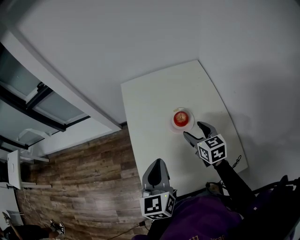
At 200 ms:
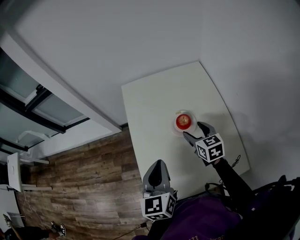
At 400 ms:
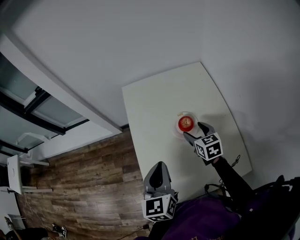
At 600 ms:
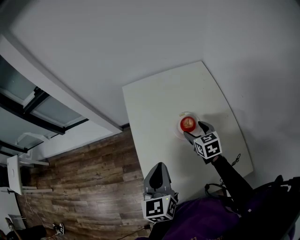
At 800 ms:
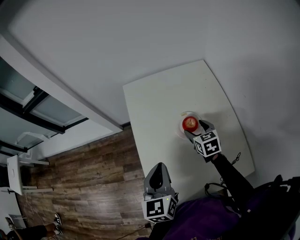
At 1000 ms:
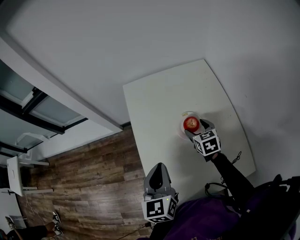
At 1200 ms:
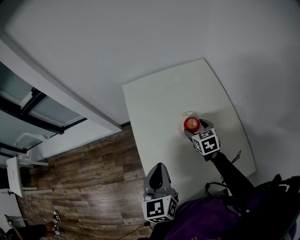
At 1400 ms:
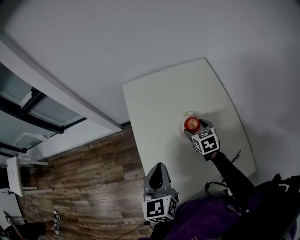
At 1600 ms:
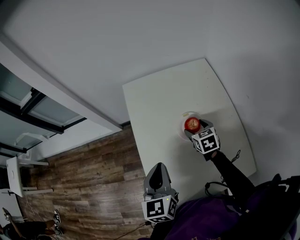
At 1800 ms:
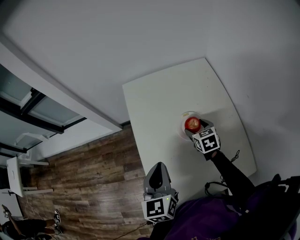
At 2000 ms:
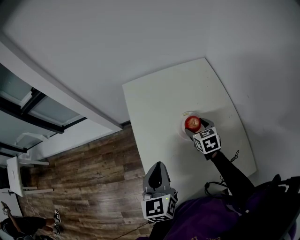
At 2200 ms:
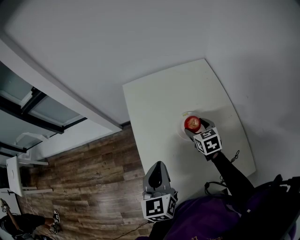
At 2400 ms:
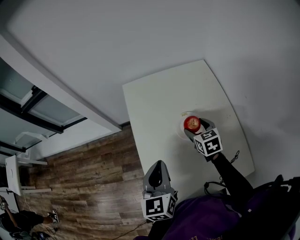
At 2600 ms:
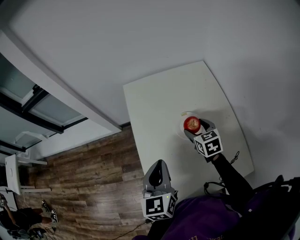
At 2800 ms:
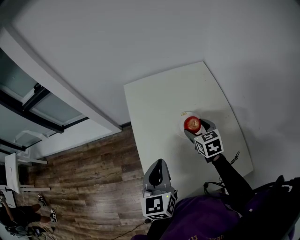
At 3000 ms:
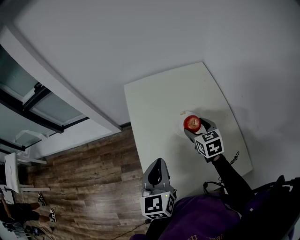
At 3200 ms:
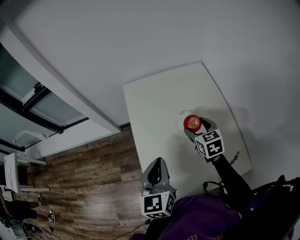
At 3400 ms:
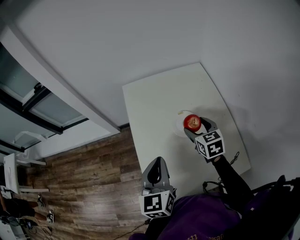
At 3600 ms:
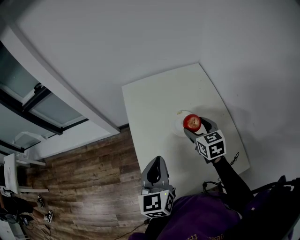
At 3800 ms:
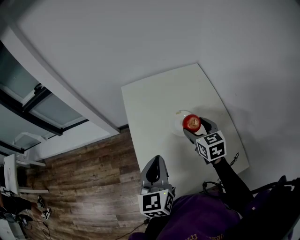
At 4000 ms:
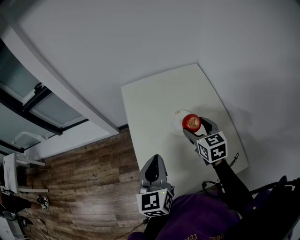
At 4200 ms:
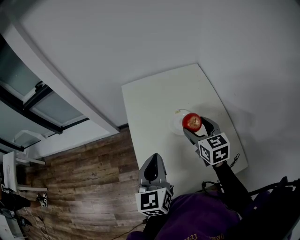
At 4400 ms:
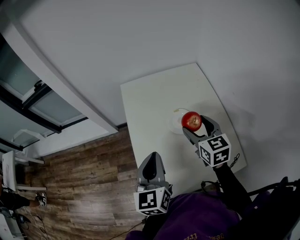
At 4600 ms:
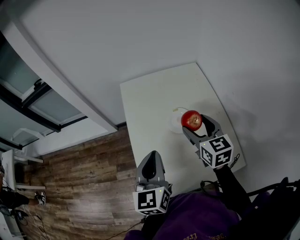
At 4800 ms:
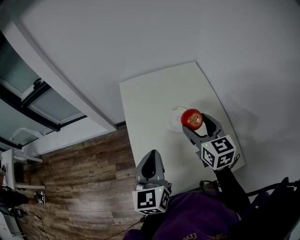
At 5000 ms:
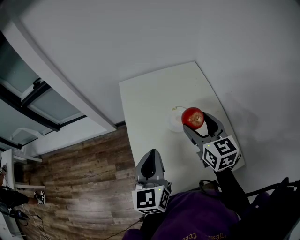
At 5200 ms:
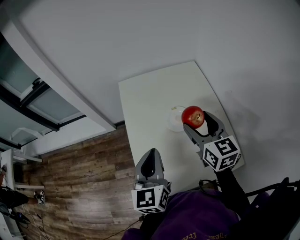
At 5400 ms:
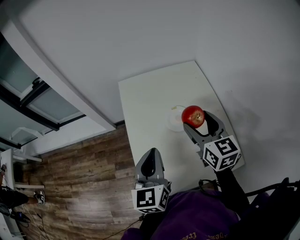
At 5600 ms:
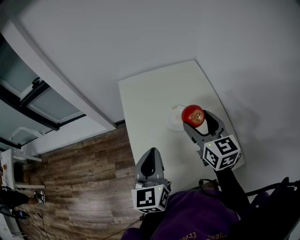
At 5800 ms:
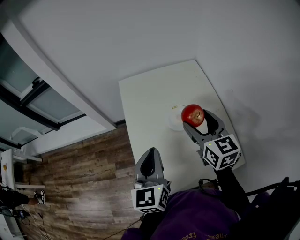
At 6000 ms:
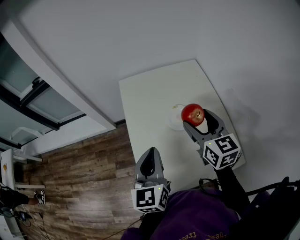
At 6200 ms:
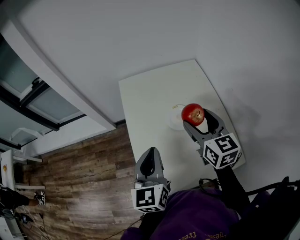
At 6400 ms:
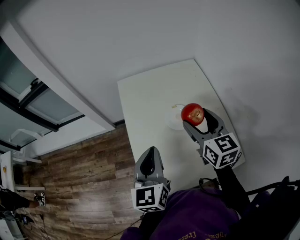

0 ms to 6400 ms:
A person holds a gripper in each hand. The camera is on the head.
0 ms to 1600 ms: The right gripper heads downward and forward, covering approximately 10 cm; the left gripper goes approximately 5 cm forward.
1600 ms to 3200 ms: The right gripper moves upward, about 10 cm.
3200 ms to 4800 ms: The right gripper goes about 15 cm upward and backward.
4800 ms to 6400 ms: There are only small adjustments of the grippers.

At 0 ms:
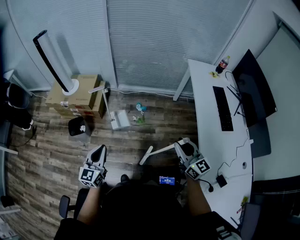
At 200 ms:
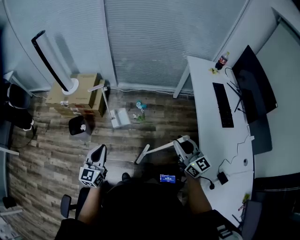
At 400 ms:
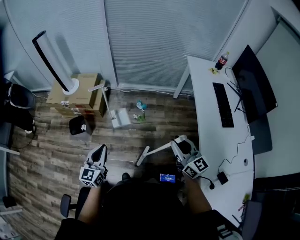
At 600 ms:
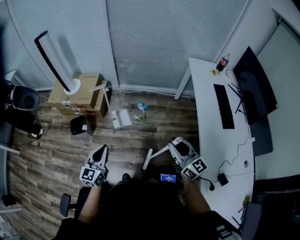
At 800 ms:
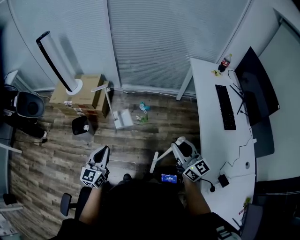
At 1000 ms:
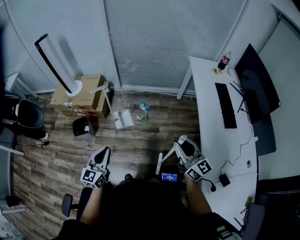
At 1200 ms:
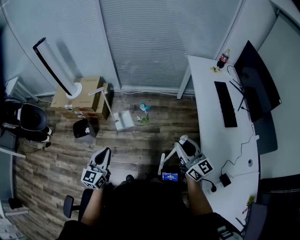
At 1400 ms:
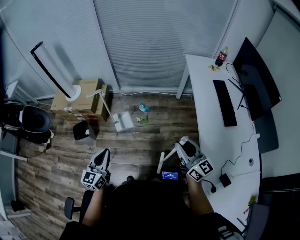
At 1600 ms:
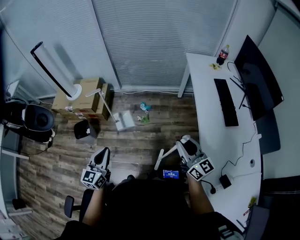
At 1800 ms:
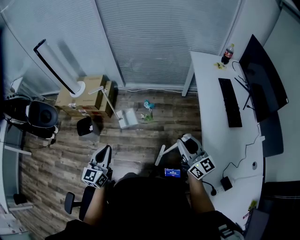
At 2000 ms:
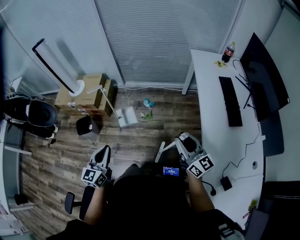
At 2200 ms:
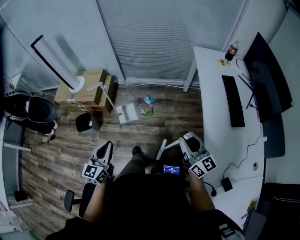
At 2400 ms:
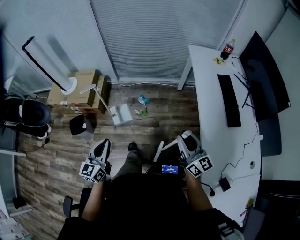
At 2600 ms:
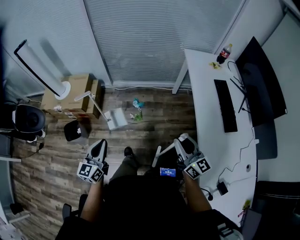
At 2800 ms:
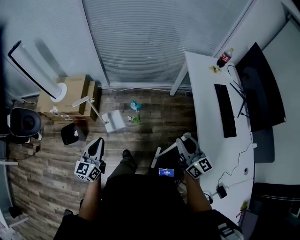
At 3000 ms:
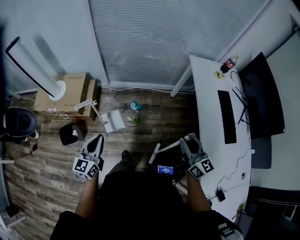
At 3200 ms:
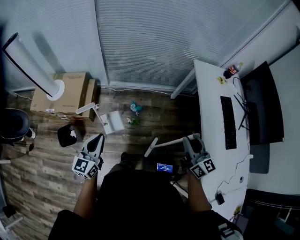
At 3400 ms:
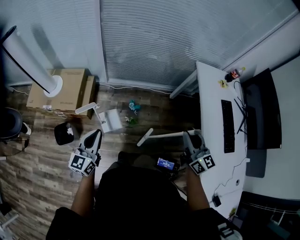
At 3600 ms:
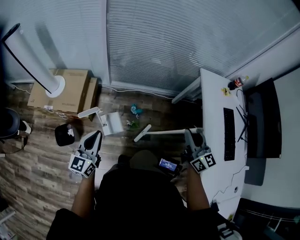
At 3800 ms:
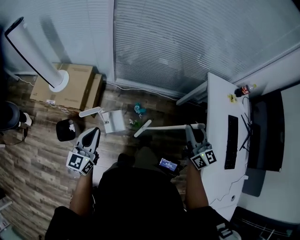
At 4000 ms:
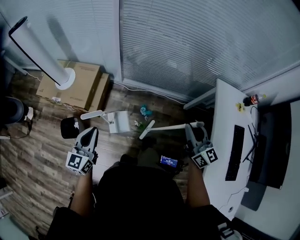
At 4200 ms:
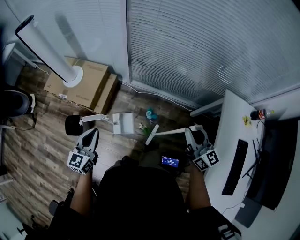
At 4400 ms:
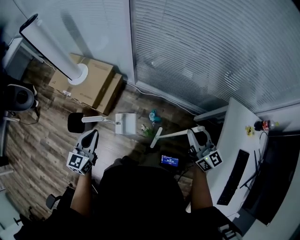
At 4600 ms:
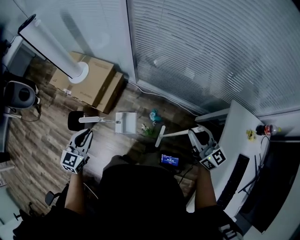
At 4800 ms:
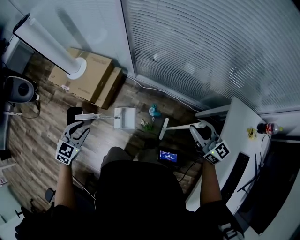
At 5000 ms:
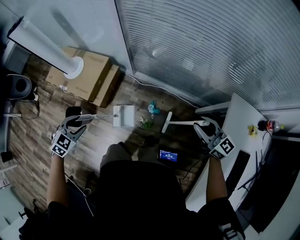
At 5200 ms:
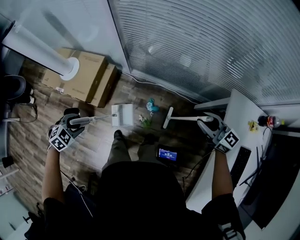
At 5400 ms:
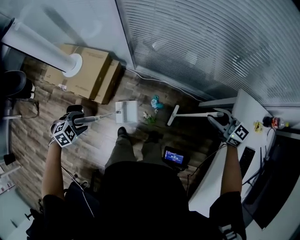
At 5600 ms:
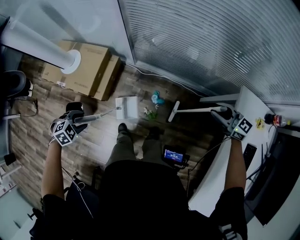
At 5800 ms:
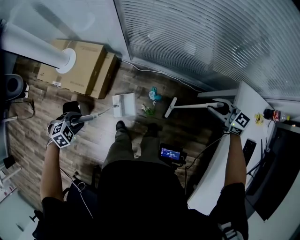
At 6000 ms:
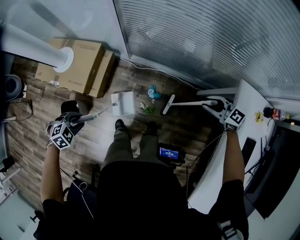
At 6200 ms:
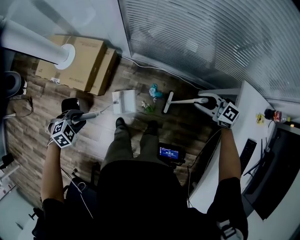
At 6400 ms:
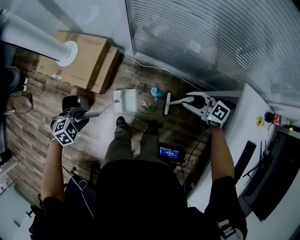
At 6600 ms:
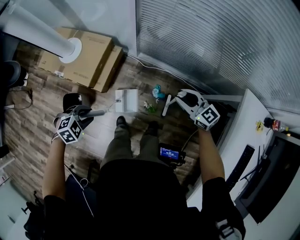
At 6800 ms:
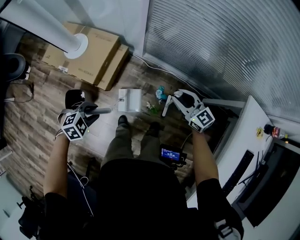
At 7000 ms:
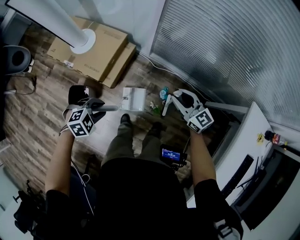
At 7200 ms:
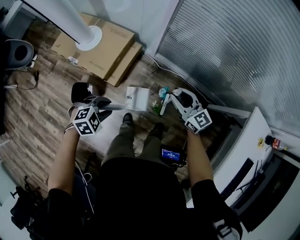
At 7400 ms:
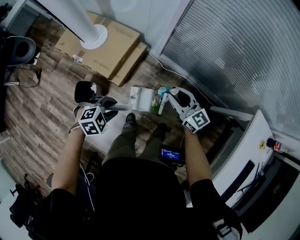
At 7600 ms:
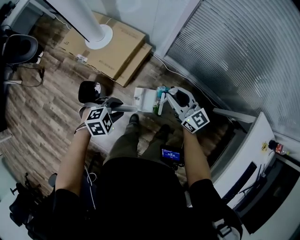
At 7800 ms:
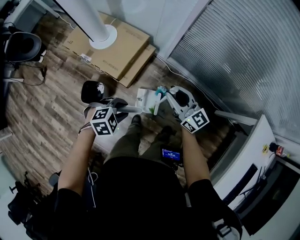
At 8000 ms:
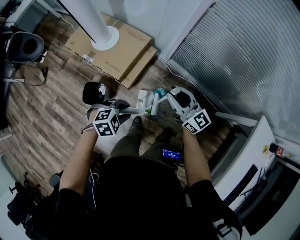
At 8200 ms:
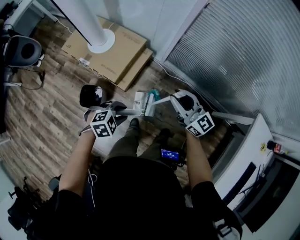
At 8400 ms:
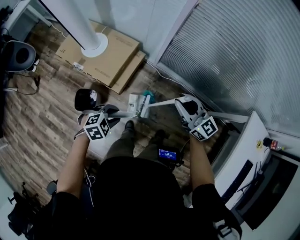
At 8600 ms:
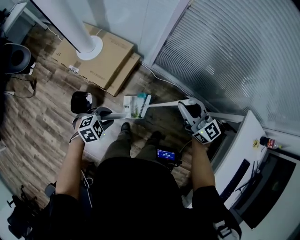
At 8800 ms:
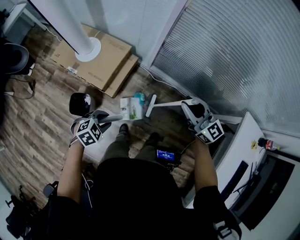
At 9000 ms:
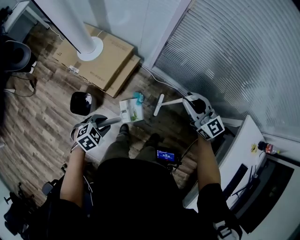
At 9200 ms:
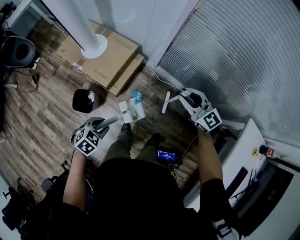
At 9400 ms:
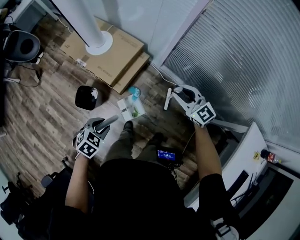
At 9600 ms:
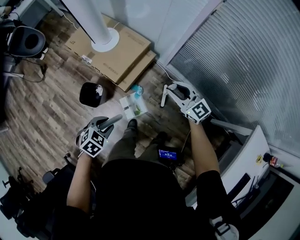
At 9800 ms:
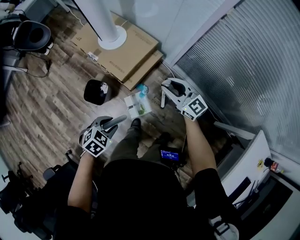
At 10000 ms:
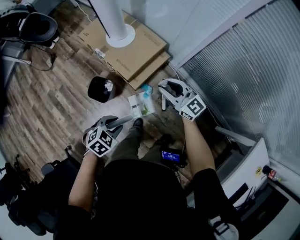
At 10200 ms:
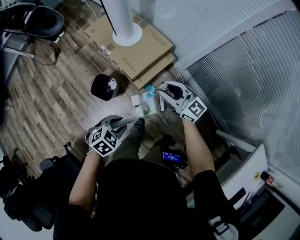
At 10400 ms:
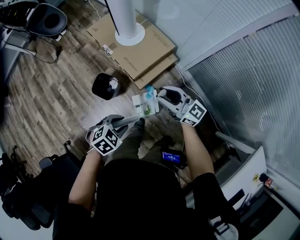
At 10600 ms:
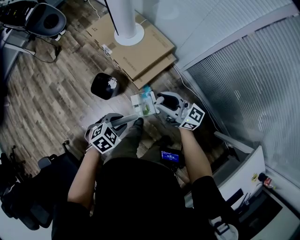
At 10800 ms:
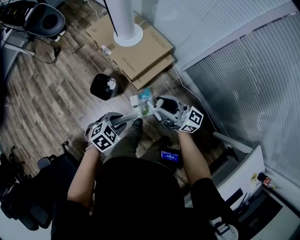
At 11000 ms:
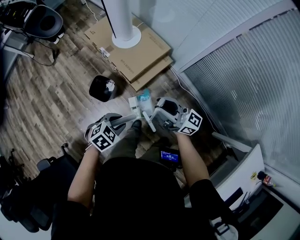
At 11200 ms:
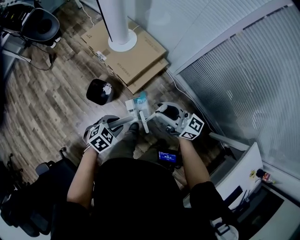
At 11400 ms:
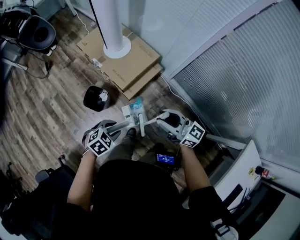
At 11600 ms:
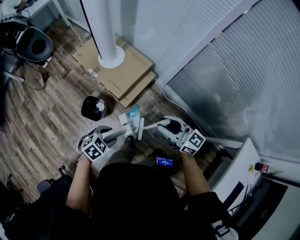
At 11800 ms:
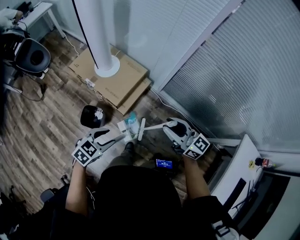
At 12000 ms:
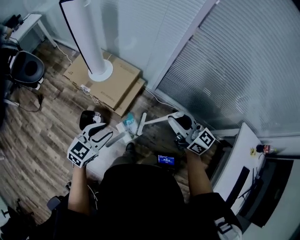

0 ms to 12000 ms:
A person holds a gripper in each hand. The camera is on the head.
0 ms to 1600 ms: Both grippers move to the right, approximately 5 cm.
1600 ms to 3000 ms: Both grippers travel together forward, roughly 20 cm.
3000 ms to 4400 ms: The left gripper heads forward, covering about 20 cm, and rotates roughly 20 degrees; the right gripper is displaced forward by about 35 cm, and rotates some 30 degrees.
4400 ms to 6000 ms: The left gripper goes about 15 cm downward and to the left, points its fingers some 60 degrees further downward, and opens up. Meanwhile the right gripper travels downward, forward and to the right by approximately 20 cm, and turns by approximately 40 degrees.
6000 ms to 7600 ms: The right gripper changes place by about 40 cm, and swivels some 20 degrees.
7600 ms to 9000 ms: The right gripper moves to the right and upward, approximately 15 cm.
9000 ms to 10400 ms: The left gripper shifts by some 5 cm, and swivels some 20 degrees, while the right gripper changes place by about 30 cm, and rotates roughly 40 degrees.
10400 ms to 12000 ms: The grippers both shift upward by approximately 15 cm. The left gripper tips its fingers upward by approximately 40 degrees. The right gripper changes its angle by roughly 30 degrees.

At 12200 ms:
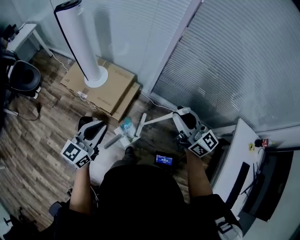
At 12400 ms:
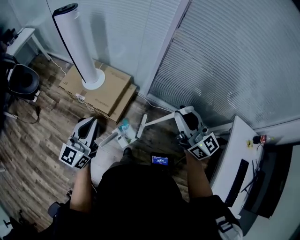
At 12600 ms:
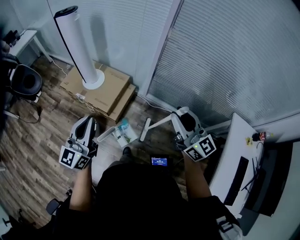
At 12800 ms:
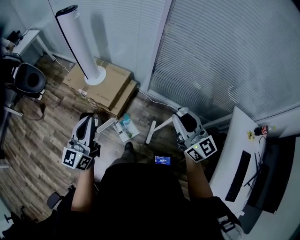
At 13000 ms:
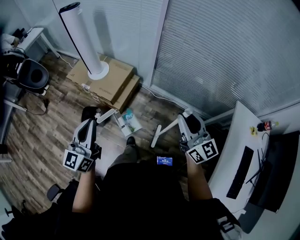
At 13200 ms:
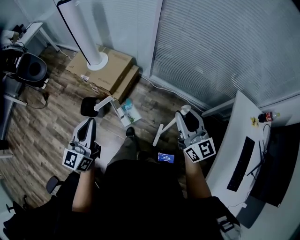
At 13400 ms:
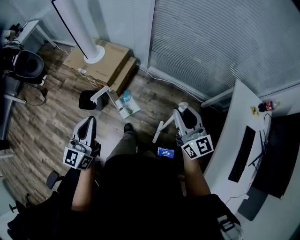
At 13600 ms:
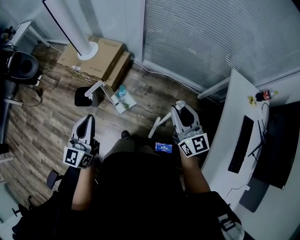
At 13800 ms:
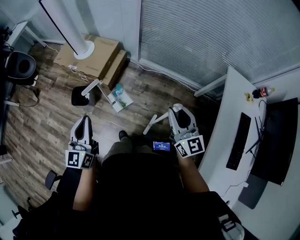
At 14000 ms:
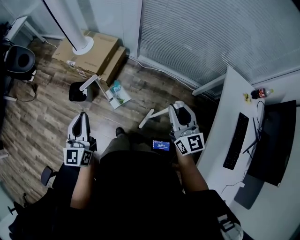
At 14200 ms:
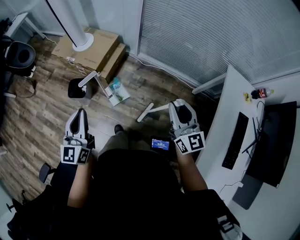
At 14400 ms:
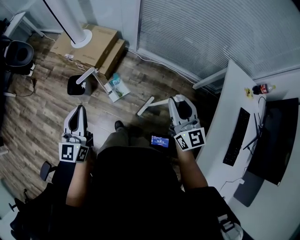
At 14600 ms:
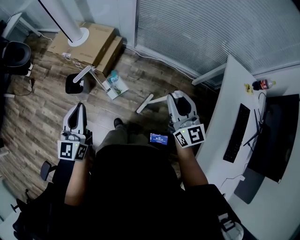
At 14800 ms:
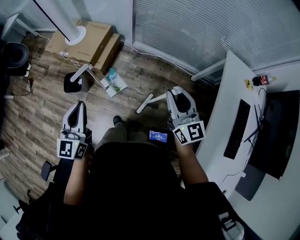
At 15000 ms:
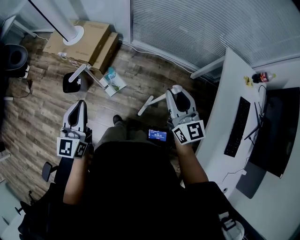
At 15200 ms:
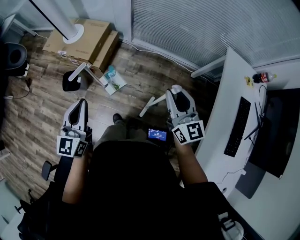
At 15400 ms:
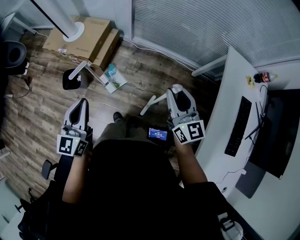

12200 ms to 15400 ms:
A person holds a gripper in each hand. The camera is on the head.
12200 ms to 13800 ms: The right gripper moves backward and to the right, some 30 cm, and swivels about 30 degrees; the left gripper moves backward, some 25 cm, and changes its angle by some 20 degrees.
13800 ms to 15400 ms: The left gripper changes place by some 5 cm.

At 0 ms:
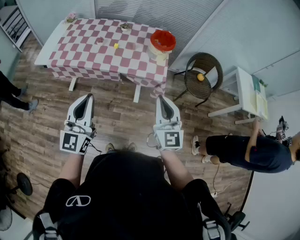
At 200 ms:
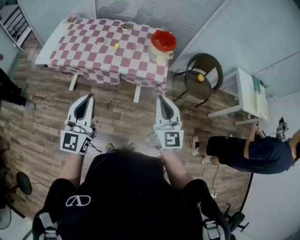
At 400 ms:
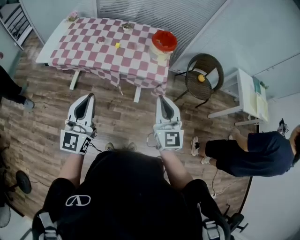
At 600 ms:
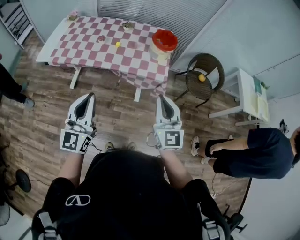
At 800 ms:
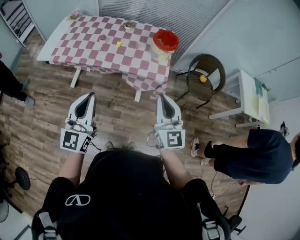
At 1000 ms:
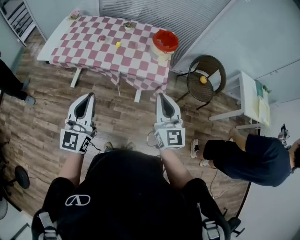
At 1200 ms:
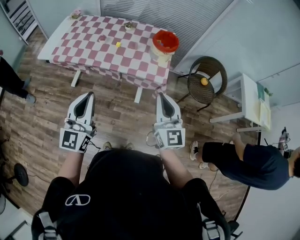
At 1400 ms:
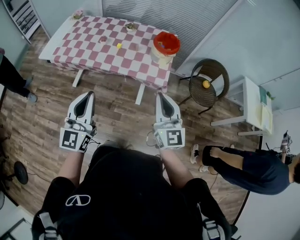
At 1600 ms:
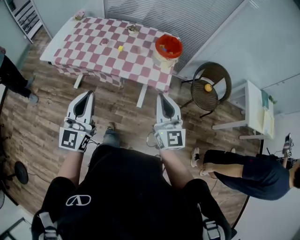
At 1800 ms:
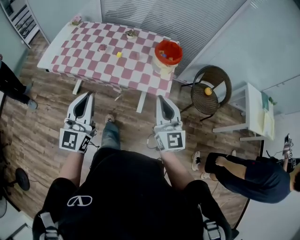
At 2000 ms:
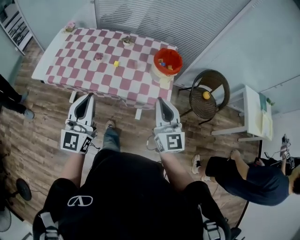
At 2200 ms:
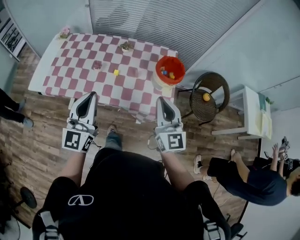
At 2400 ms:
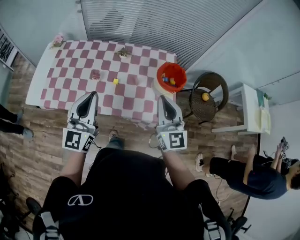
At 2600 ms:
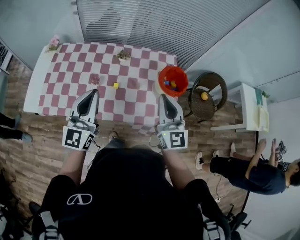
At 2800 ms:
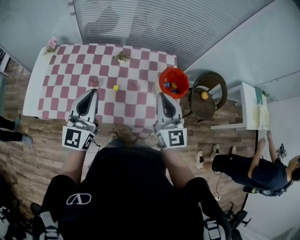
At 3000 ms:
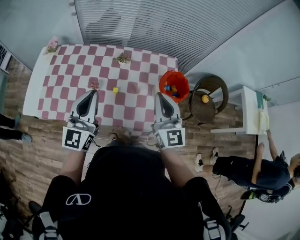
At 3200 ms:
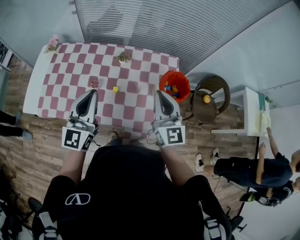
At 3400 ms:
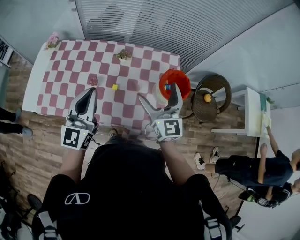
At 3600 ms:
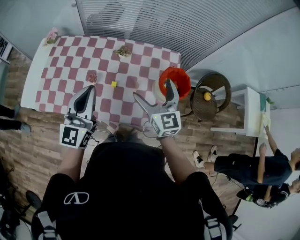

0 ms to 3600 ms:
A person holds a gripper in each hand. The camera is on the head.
0 ms to 1800 ms: Both grippers move forward, some 10 cm.
1800 ms to 3600 ms: Both grippers move forward, approximately 35 cm. The right gripper opens up.
